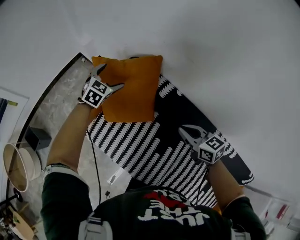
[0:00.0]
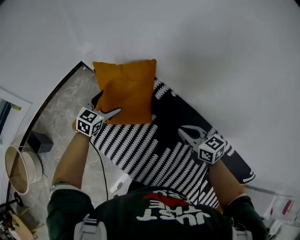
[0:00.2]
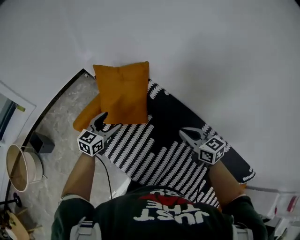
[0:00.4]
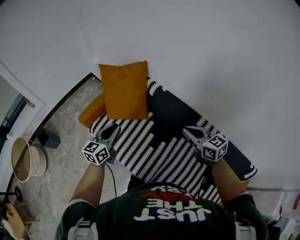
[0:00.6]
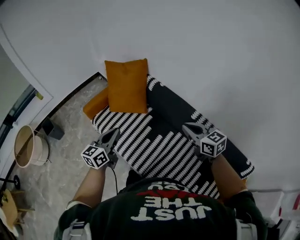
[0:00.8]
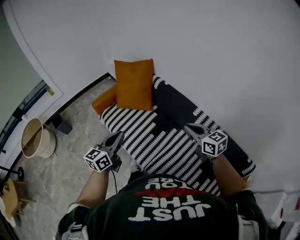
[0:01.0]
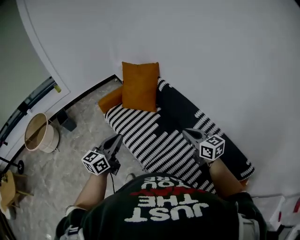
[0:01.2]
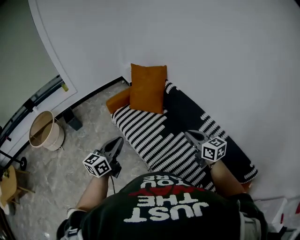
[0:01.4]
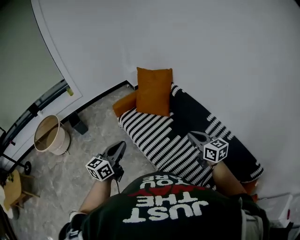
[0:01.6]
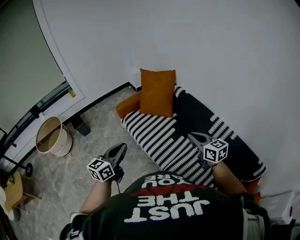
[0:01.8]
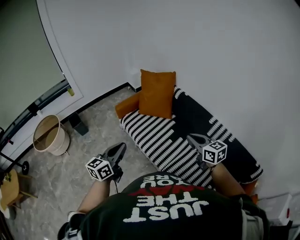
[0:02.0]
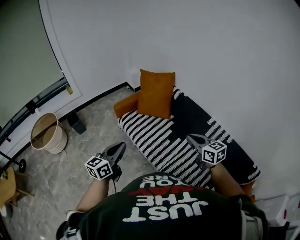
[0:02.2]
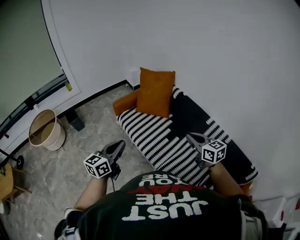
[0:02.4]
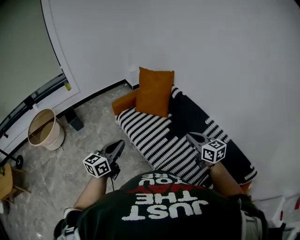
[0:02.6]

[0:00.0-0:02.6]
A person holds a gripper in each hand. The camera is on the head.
0.0 to 1.2 s: The left gripper is displaced backward by roughly 70 cm, tilts its fingers roughly 30 degrees upward, and closes its fingers. The right gripper moves backward, roughly 40 cm.
1.2 to 2.6 s: The two grippers go about 10 cm to the left.

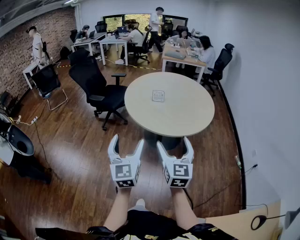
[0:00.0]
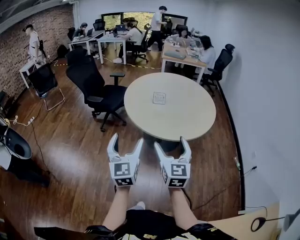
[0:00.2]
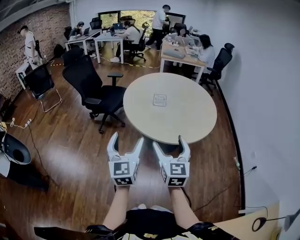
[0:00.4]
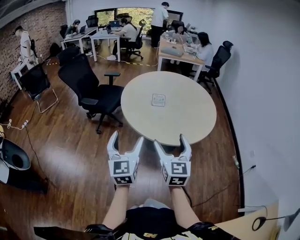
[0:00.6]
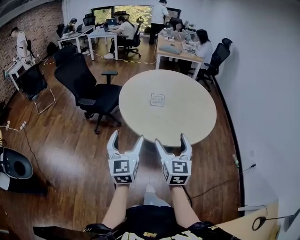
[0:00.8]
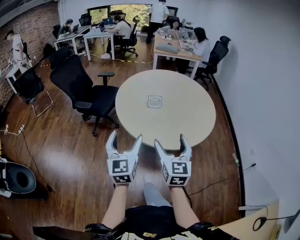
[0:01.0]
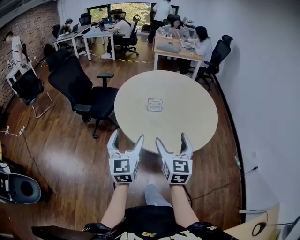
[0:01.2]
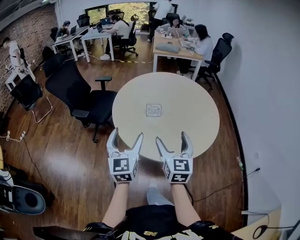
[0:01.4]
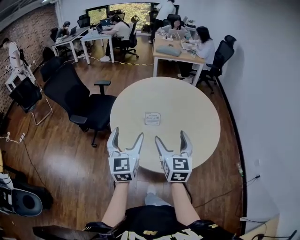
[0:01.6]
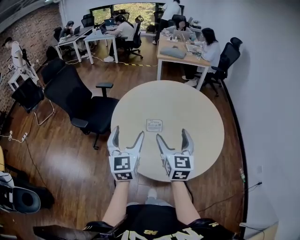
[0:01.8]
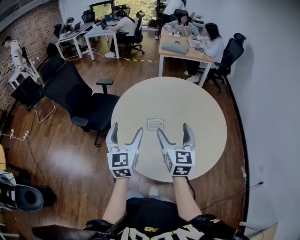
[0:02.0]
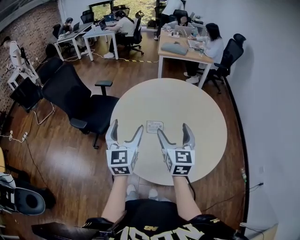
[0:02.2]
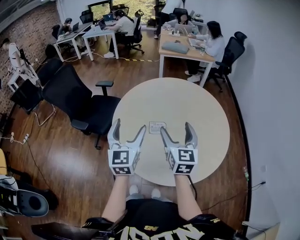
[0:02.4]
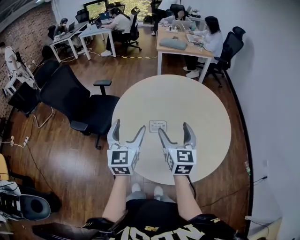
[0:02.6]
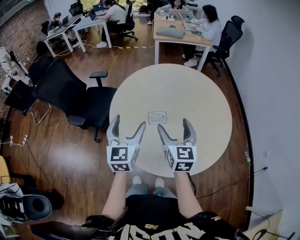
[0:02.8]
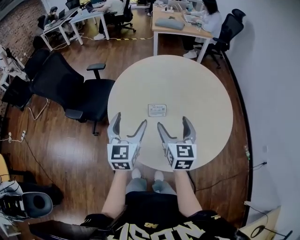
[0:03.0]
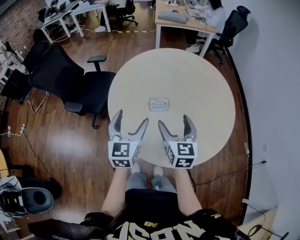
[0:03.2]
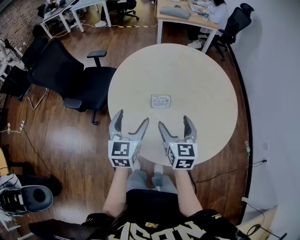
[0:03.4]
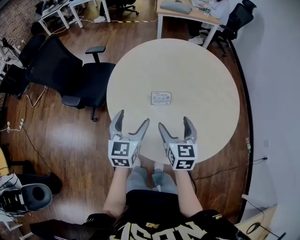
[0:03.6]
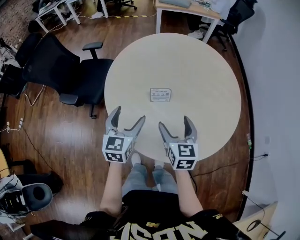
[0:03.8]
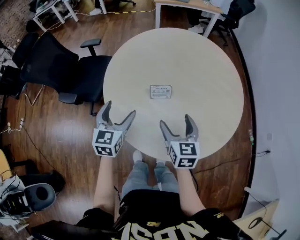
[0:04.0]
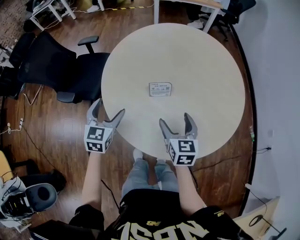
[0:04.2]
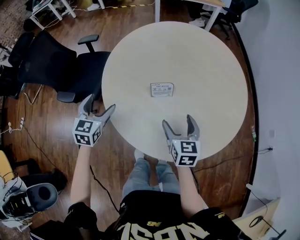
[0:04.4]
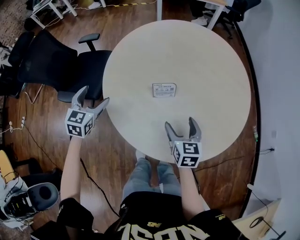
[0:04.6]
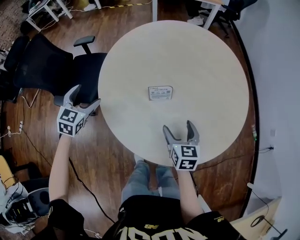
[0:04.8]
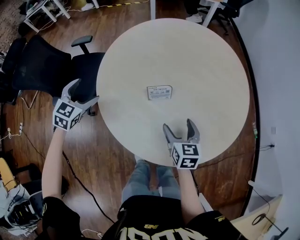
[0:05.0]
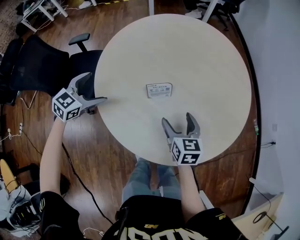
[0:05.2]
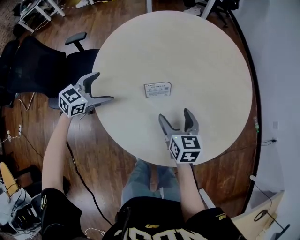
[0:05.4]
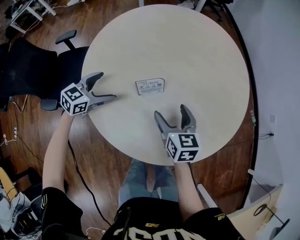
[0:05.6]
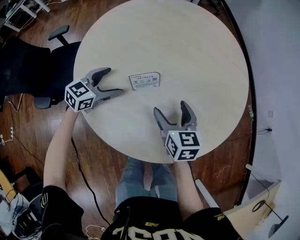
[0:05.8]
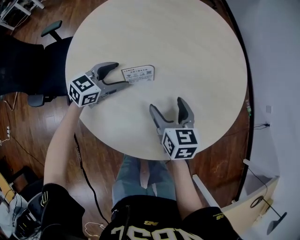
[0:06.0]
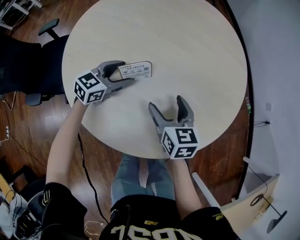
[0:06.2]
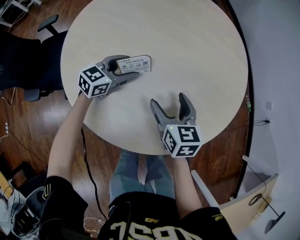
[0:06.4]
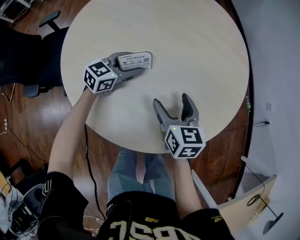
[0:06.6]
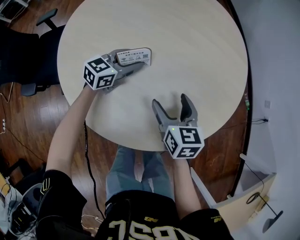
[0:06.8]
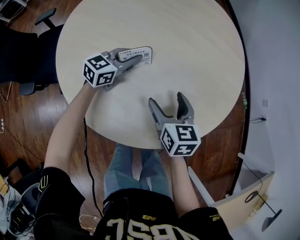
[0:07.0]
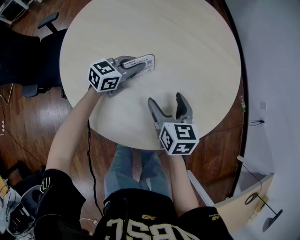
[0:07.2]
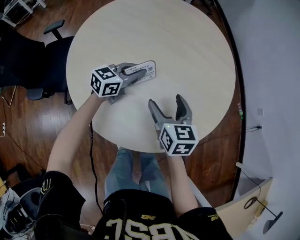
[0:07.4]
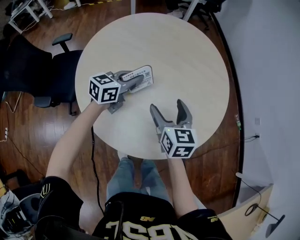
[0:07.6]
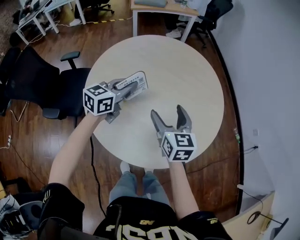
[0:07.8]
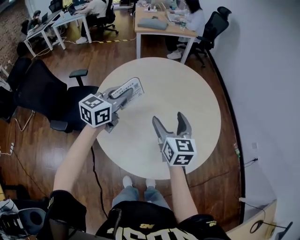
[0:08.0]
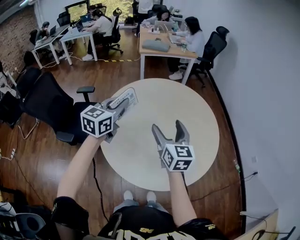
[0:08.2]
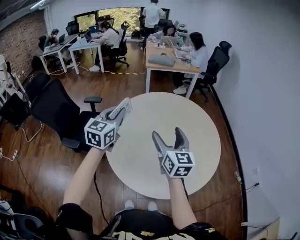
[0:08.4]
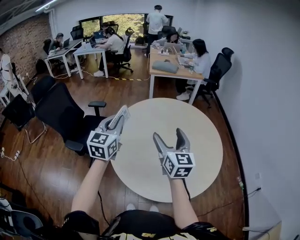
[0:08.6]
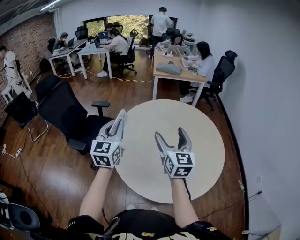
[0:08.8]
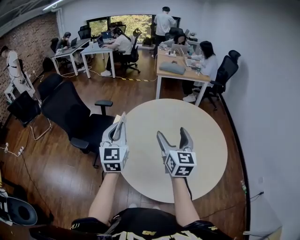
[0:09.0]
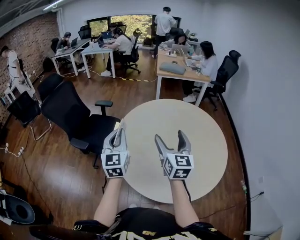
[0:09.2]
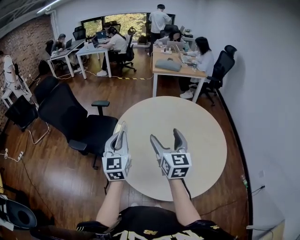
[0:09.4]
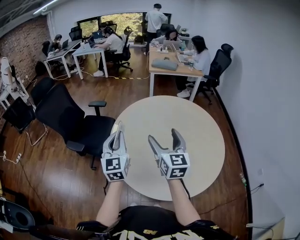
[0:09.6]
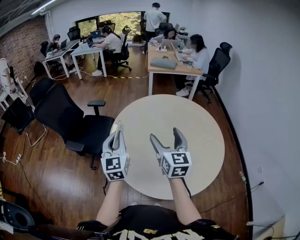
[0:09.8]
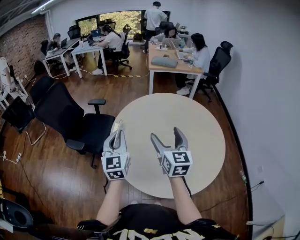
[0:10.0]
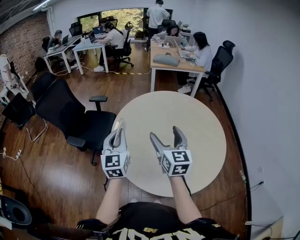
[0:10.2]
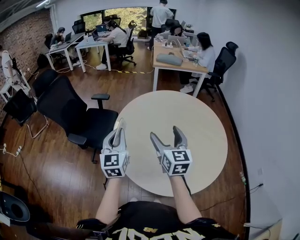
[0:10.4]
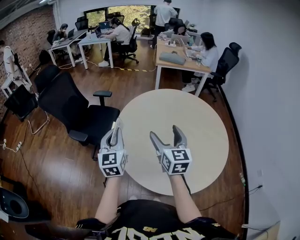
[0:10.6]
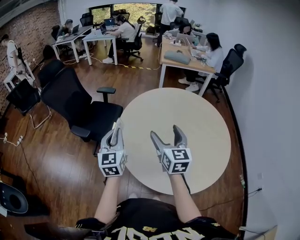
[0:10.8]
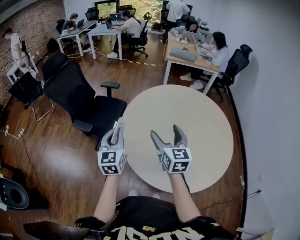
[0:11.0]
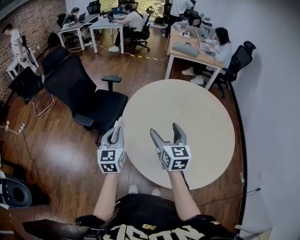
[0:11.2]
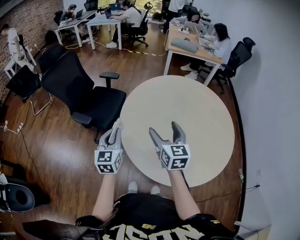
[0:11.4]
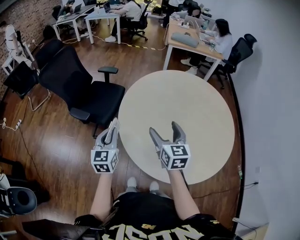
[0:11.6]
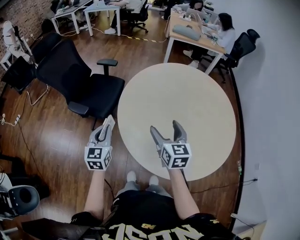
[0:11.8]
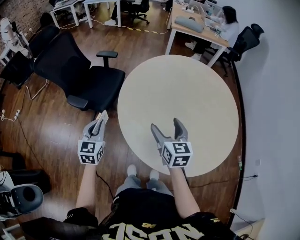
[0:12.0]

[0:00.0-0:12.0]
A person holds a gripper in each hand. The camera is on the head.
0.0 to 1.6 s: The two grippers go roughly 40 cm forward.
1.6 to 3.0 s: The left gripper moves forward, about 15 cm, while the right gripper is displaced forward and downward by roughly 15 cm.
3.0 to 4.4 s: The left gripper moves downward, to the left and forward, some 20 cm, and changes its angle by roughly 20 degrees. The right gripper shifts approximately 15 cm downward.
4.4 to 6.0 s: The left gripper changes place by some 25 cm, and swivels about 50 degrees, while the right gripper travels downward by some 5 cm.
6.0 to 7.6 s: The right gripper moves upward, approximately 10 cm, while the left gripper shifts about 15 cm upward and to the right, and closes its fingers.
7.6 to 9.0 s: The two grippers go roughly 25 cm upward. The right gripper turns by approximately 30 degrees; the left gripper turns by some 70 degrees.
9.0 to 10.4 s: The left gripper goes roughly 5 cm downward.
10.4 to 12.0 s: The left gripper shifts some 20 cm downward and to the left, and changes its angle by roughly 20 degrees. The right gripper shifts approximately 15 cm downward and to the left.

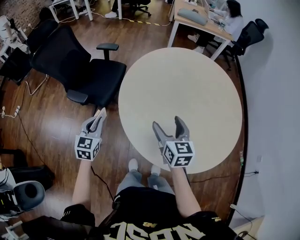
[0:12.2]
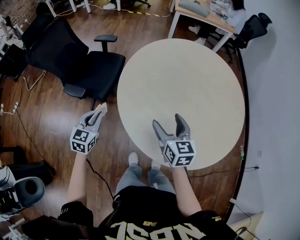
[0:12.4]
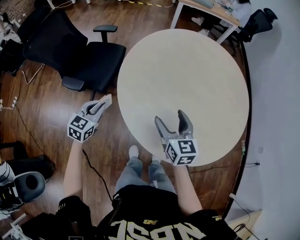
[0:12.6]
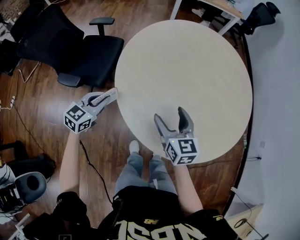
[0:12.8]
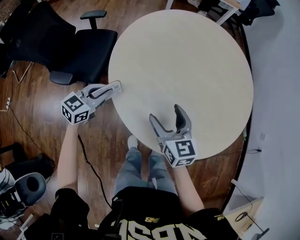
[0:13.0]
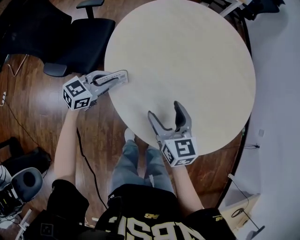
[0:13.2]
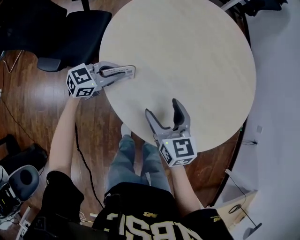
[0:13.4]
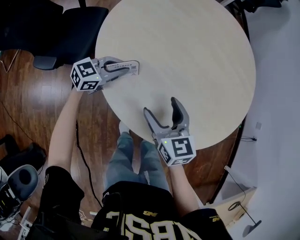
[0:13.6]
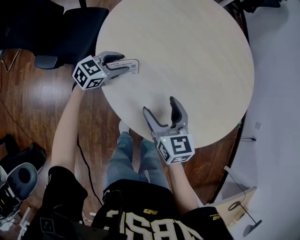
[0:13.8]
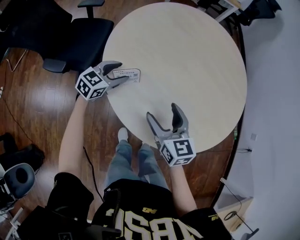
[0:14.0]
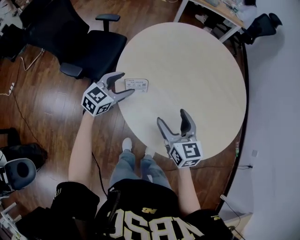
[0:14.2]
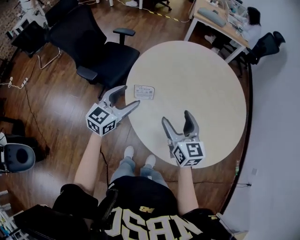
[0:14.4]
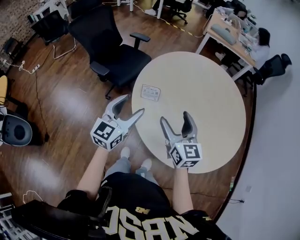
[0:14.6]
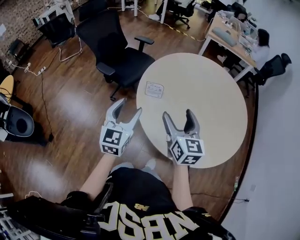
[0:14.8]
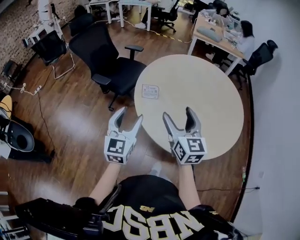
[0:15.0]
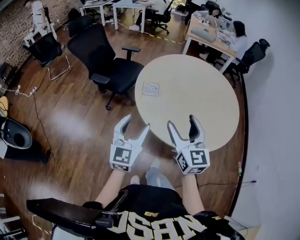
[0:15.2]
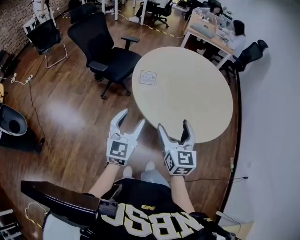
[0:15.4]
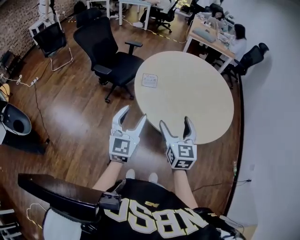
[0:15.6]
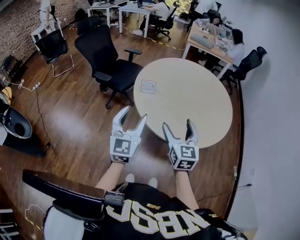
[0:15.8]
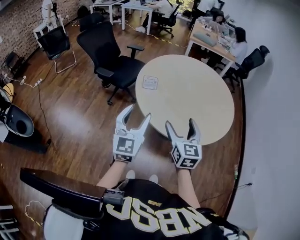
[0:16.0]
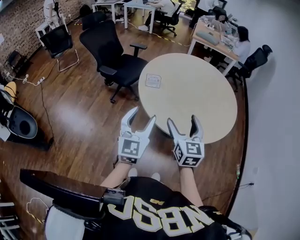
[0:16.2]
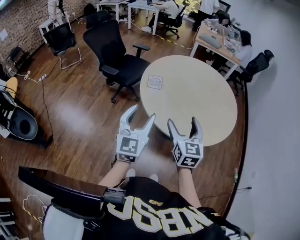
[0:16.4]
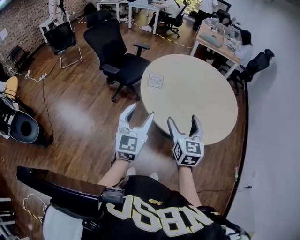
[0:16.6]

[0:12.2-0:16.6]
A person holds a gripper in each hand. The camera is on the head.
12.2 to 13.6 s: The left gripper shifts by roughly 25 cm, and rotates some 60 degrees, while the right gripper goes roughly 10 cm downward.
13.6 to 15.2 s: The left gripper shifts by roughly 50 cm, swivels about 70 degrees, and opens its fingers, while the right gripper travels upward by roughly 25 cm, and turns by about 30 degrees.
15.2 to 16.6 s: The two grippers go some 5 cm backward.

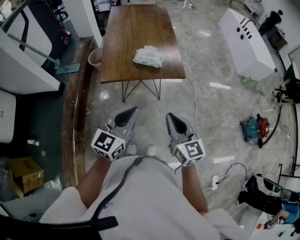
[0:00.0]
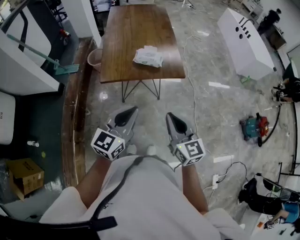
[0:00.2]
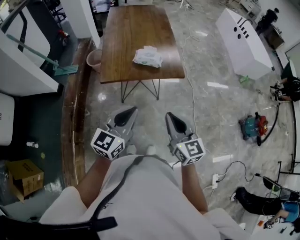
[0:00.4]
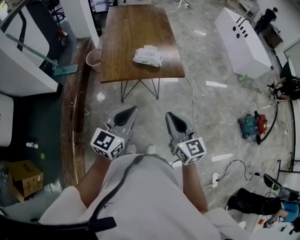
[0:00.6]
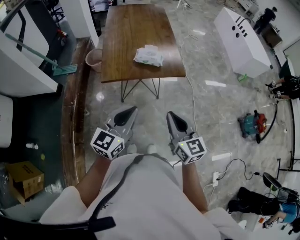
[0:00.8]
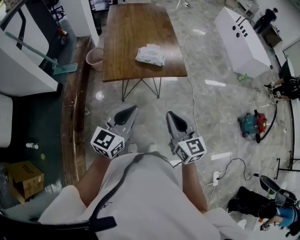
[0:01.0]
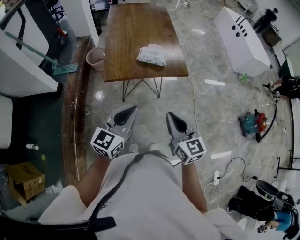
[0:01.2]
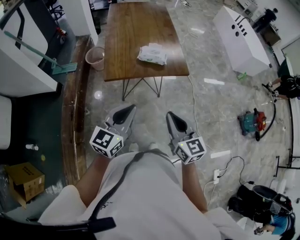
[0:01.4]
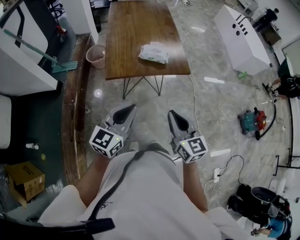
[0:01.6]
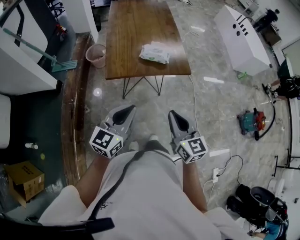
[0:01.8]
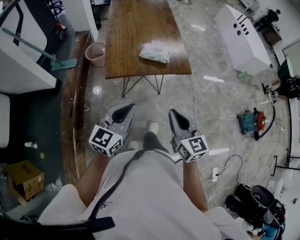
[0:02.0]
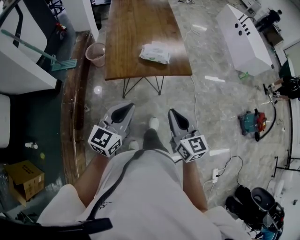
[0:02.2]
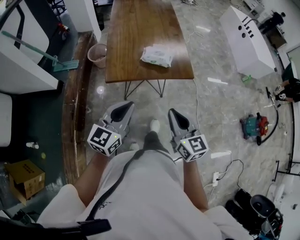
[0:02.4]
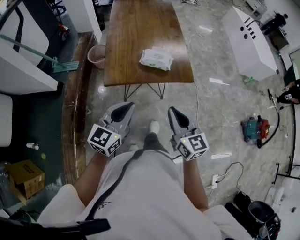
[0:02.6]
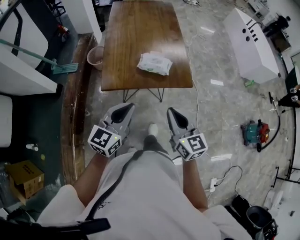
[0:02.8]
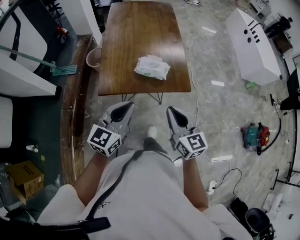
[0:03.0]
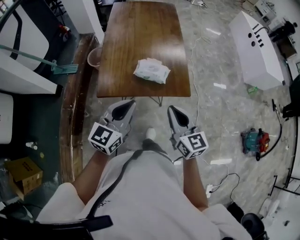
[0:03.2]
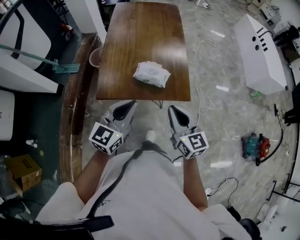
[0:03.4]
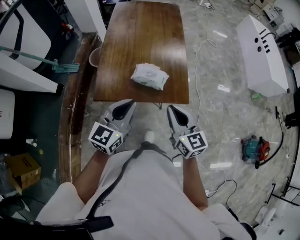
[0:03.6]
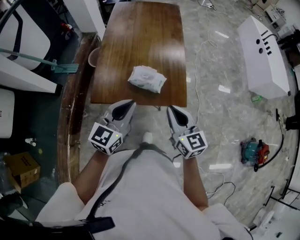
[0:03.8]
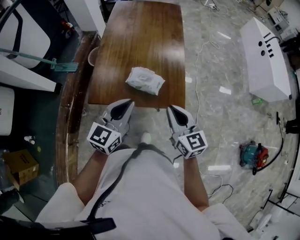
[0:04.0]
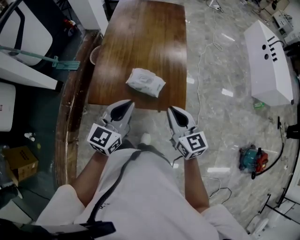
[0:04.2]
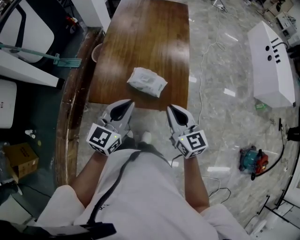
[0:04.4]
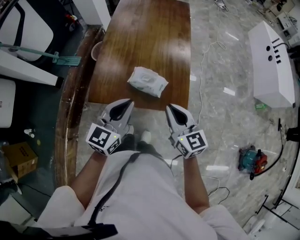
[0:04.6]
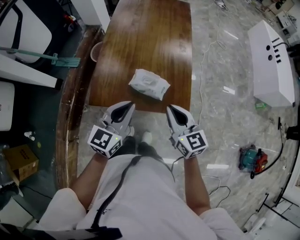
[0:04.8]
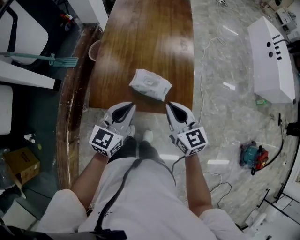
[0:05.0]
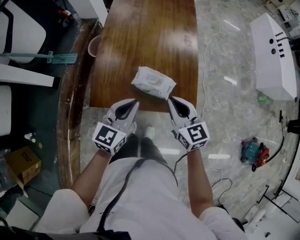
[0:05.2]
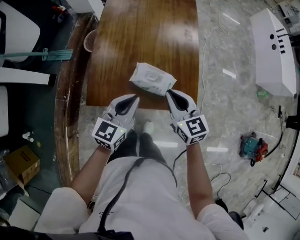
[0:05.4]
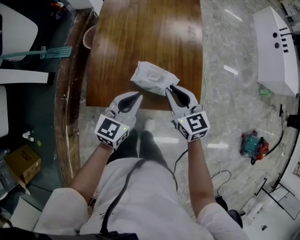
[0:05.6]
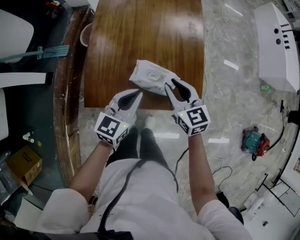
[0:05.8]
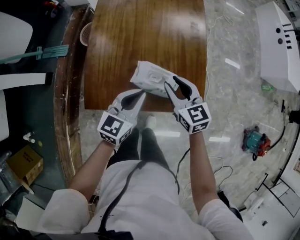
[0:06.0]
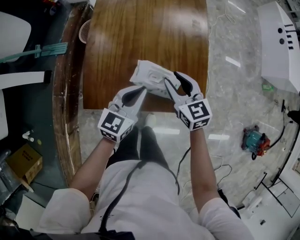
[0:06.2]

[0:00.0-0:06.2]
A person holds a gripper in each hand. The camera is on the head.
0.0 to 1.6 s: The two grippers go about 10 cm to the left.
1.6 to 3.2 s: The grippers both shift forward by roughly 20 cm.
3.2 to 4.6 s: The right gripper travels forward by about 15 cm, while the left gripper heads forward and to the right, covering some 10 cm.
4.6 to 6.2 s: The right gripper shifts approximately 20 cm forward and downward, and opens its fingers, while the left gripper shifts about 20 cm downward and forward.
